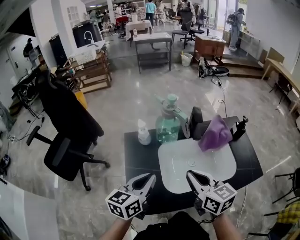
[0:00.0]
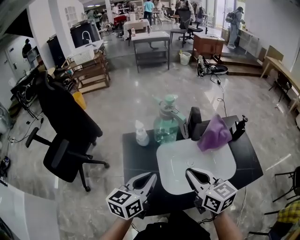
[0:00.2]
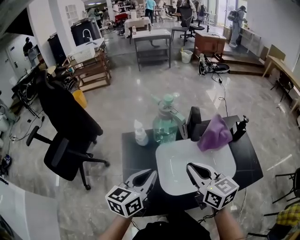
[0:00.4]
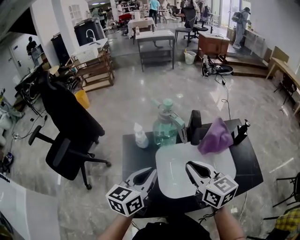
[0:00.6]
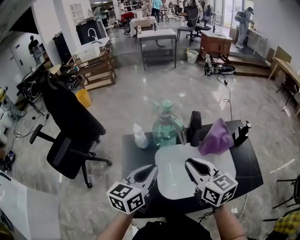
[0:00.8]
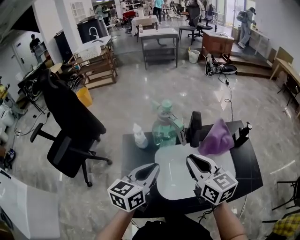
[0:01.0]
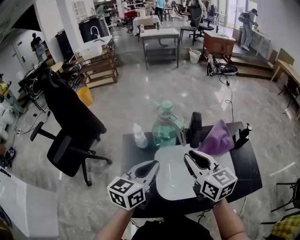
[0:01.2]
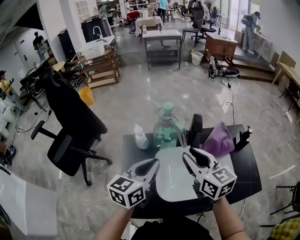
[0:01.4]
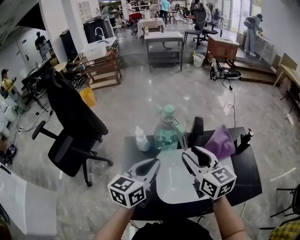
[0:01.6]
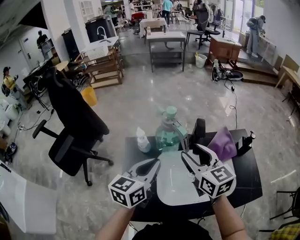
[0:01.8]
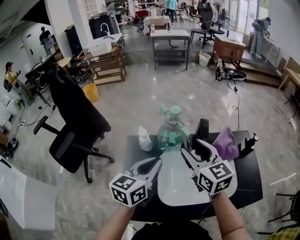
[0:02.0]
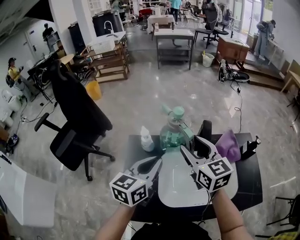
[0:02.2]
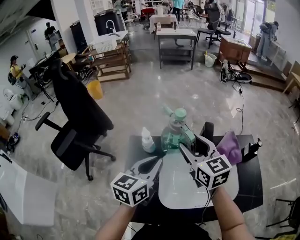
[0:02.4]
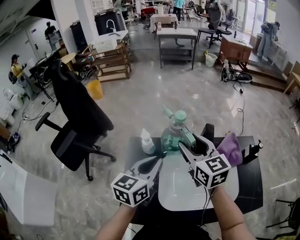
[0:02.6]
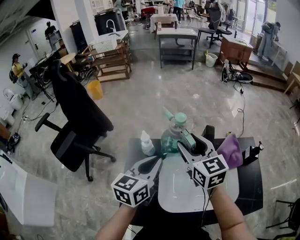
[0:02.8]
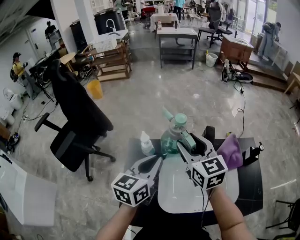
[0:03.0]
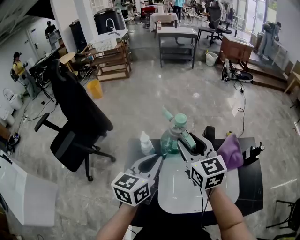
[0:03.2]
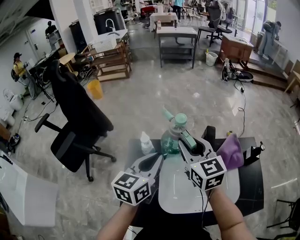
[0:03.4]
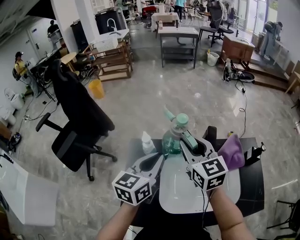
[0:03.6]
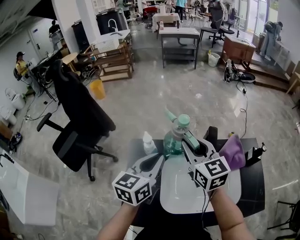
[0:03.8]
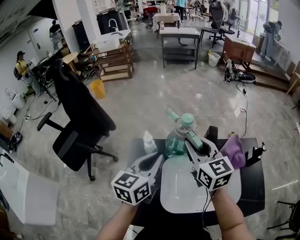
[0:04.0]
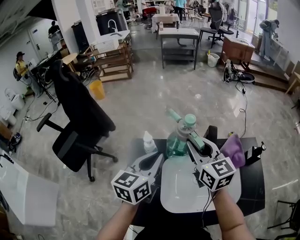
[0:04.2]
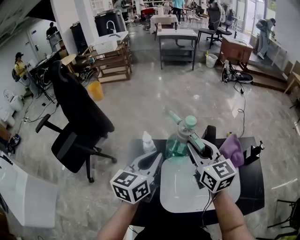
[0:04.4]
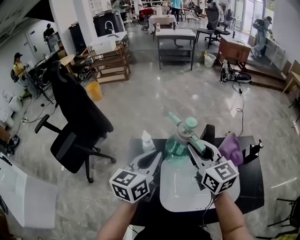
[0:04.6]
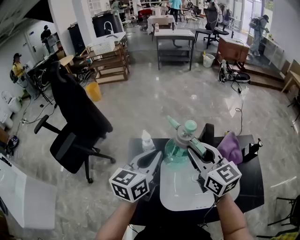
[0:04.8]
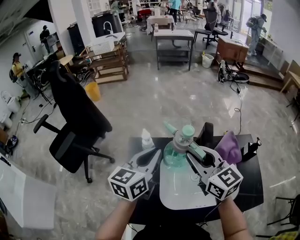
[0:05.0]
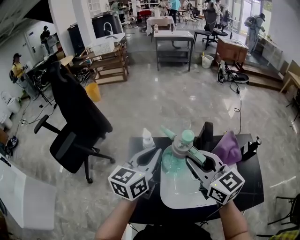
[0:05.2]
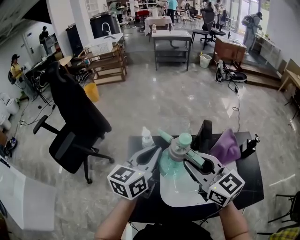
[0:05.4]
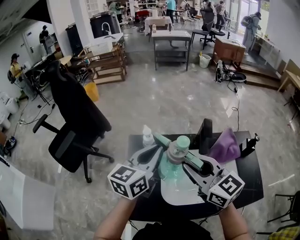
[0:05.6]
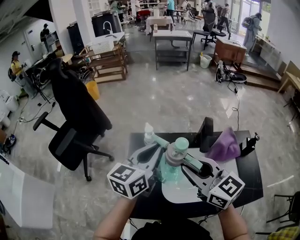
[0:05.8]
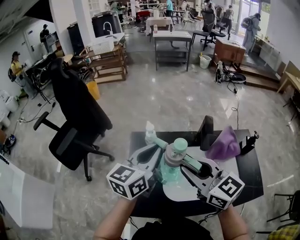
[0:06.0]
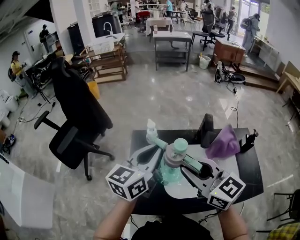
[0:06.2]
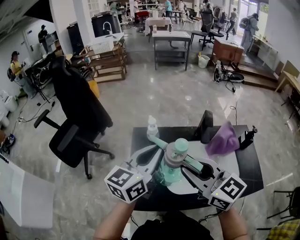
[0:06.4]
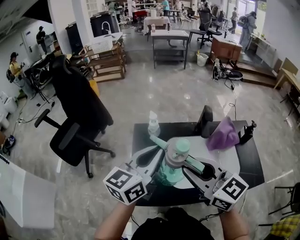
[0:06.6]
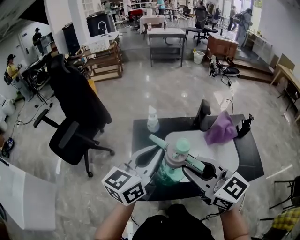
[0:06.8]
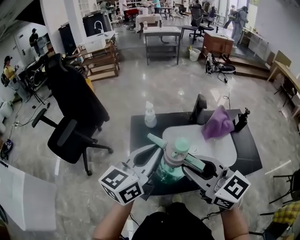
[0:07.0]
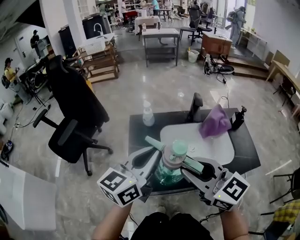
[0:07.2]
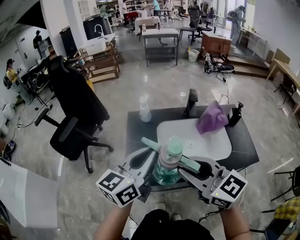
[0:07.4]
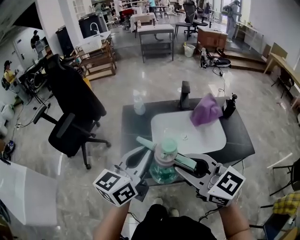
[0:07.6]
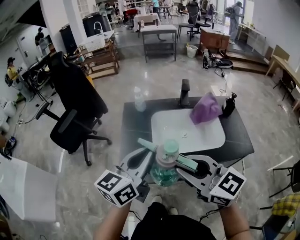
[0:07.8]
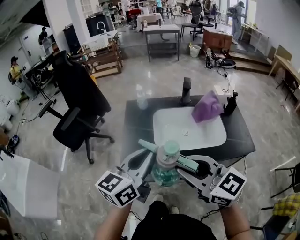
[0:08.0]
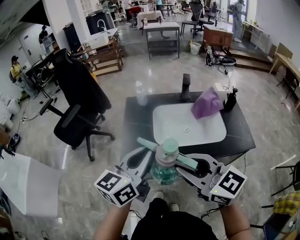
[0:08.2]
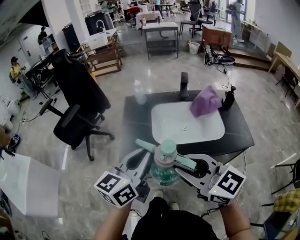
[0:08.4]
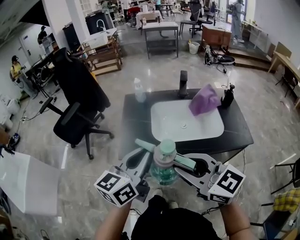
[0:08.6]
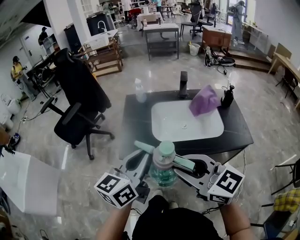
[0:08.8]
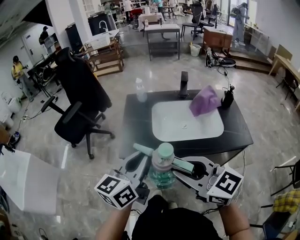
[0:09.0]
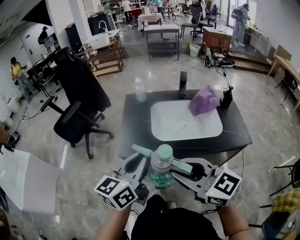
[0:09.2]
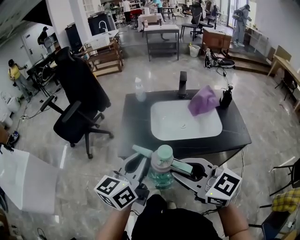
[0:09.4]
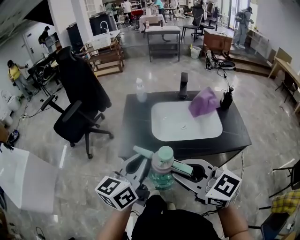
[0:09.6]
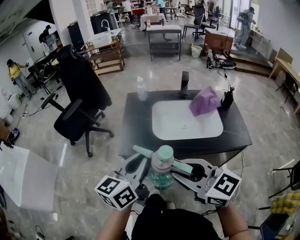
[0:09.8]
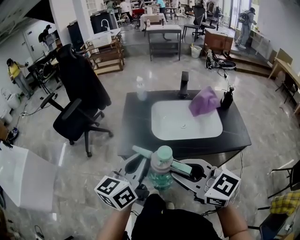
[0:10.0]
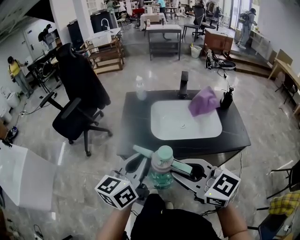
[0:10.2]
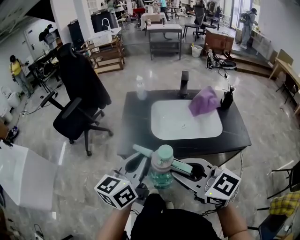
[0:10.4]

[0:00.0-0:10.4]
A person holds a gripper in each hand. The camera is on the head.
0:00.0 to 0:01.4: The left gripper moves forward and to the right, approximately 10 cm. The right gripper travels forward by roughly 10 cm.
0:01.4 to 0:03.0: The right gripper goes approximately 10 cm forward, and opens. The left gripper goes roughly 5 cm forward.
0:03.0 to 0:04.4: The right gripper closes its fingers.
0:04.4 to 0:06.0: The left gripper heads backward, covering about 5 cm. Meanwhile the right gripper moves backward and to the left, some 15 cm.
0:06.0 to 0:07.4: The grippers both shift backward by roughly 20 cm.
0:07.4 to 0:09.0: The two grippers go some 15 cm backward.
0:09.0 to 0:10.4: The grippers stay close to where they were, moving slightly.

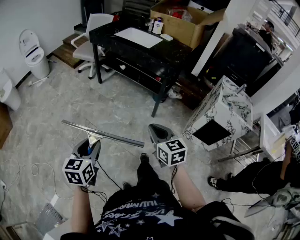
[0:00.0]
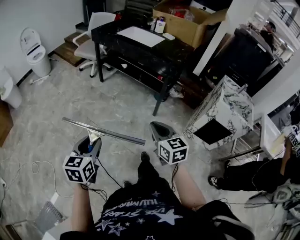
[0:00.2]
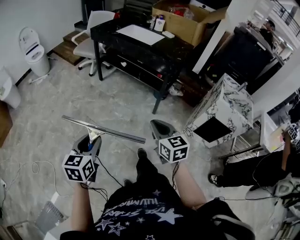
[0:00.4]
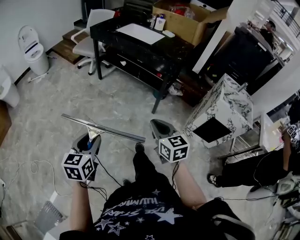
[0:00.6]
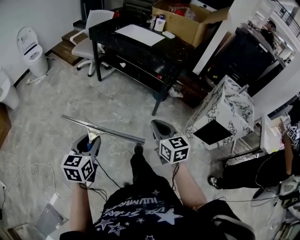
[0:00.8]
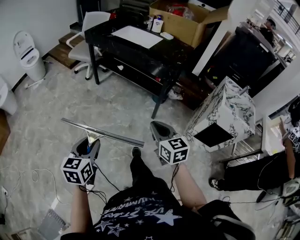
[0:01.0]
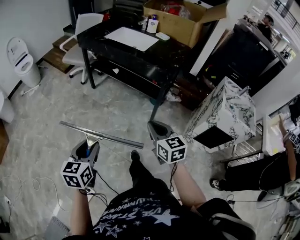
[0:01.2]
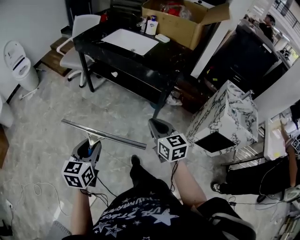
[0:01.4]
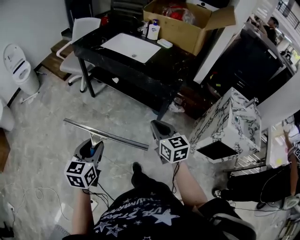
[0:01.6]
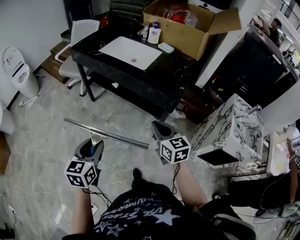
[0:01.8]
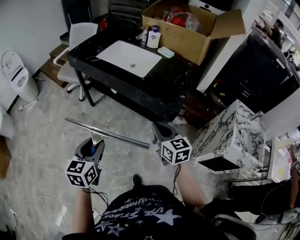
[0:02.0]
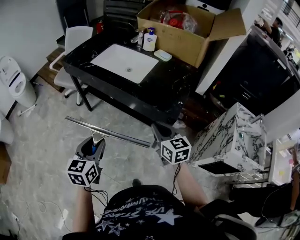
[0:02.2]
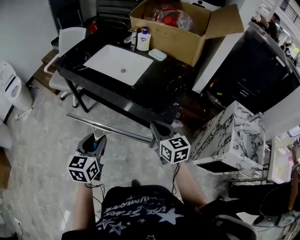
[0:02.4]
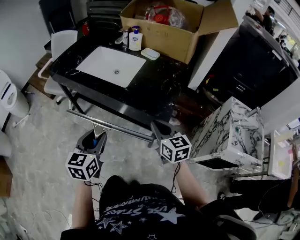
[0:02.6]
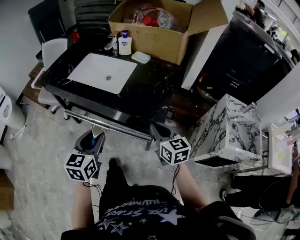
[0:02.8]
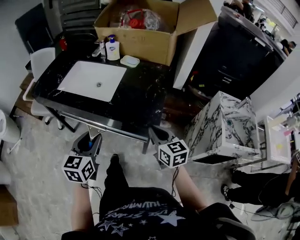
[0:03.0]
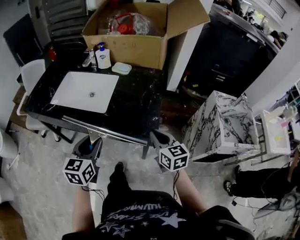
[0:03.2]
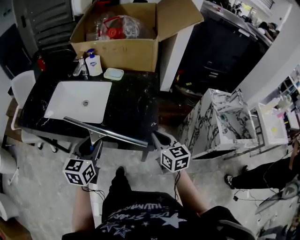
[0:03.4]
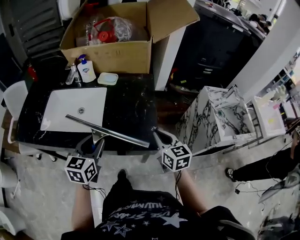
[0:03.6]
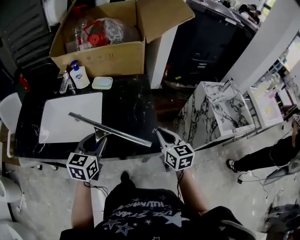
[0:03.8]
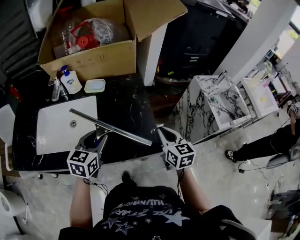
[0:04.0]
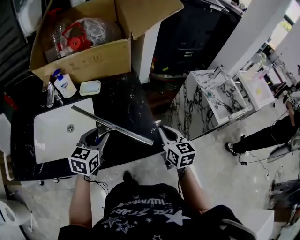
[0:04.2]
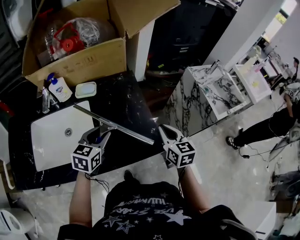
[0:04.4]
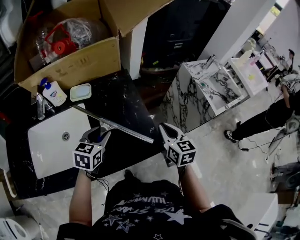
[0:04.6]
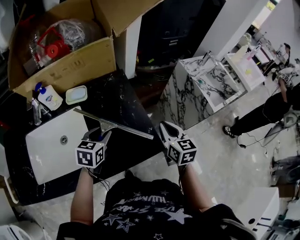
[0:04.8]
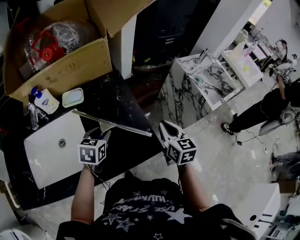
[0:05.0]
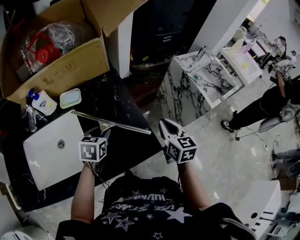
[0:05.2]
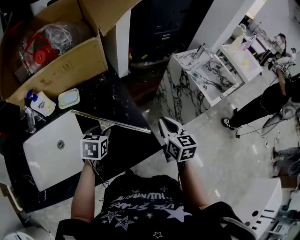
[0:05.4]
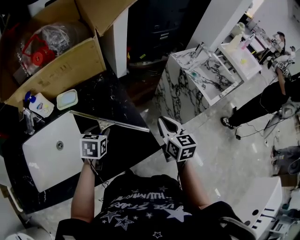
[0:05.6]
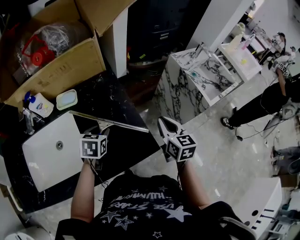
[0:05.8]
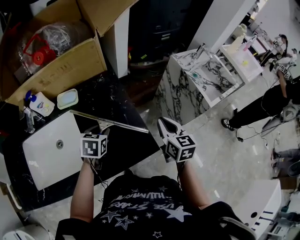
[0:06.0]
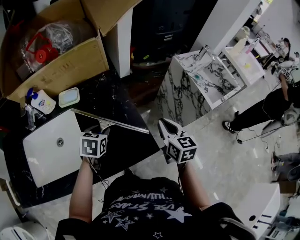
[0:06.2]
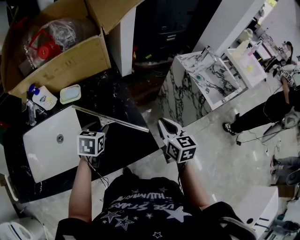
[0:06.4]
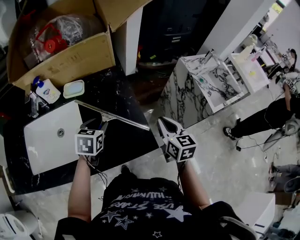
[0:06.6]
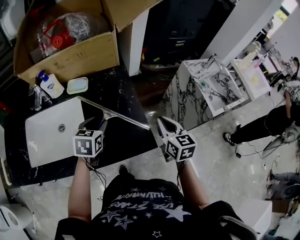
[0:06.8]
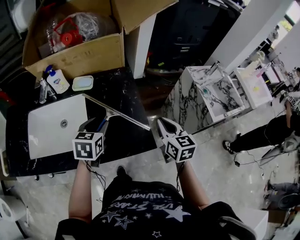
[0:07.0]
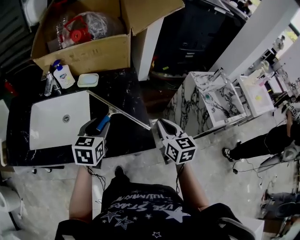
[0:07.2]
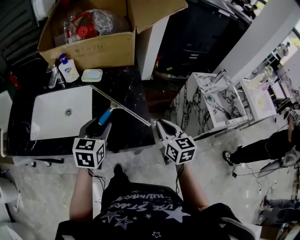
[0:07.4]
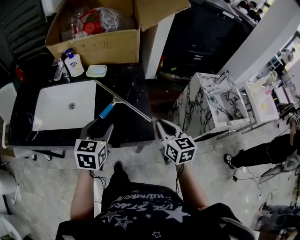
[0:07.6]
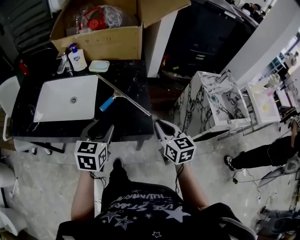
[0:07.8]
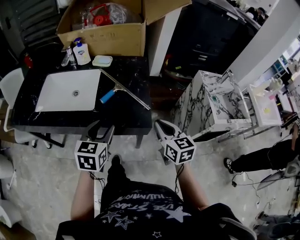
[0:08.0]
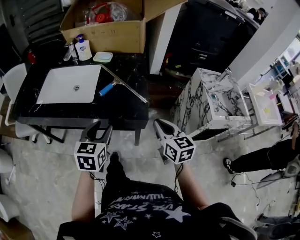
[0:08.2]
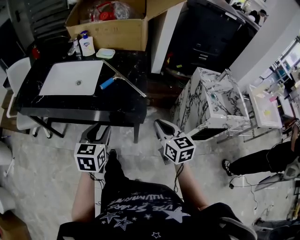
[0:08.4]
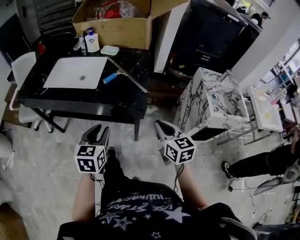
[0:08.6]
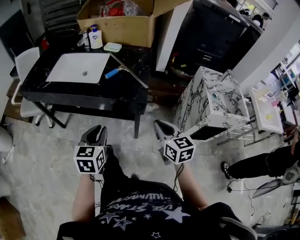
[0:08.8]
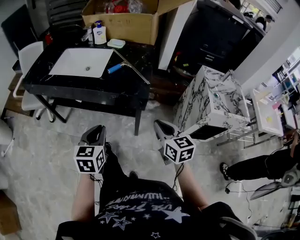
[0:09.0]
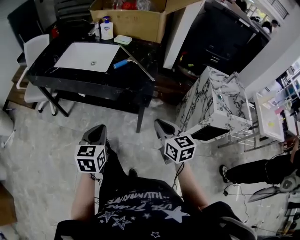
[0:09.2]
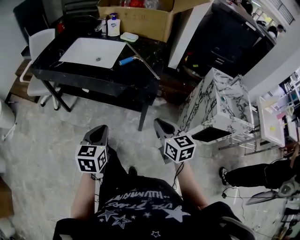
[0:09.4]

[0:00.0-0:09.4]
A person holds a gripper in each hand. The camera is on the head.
0:00.0 to 0:01.6: The grippers both shift forward by approximately 35 cm.
0:01.6 to 0:03.2: The right gripper is displaced forward and to the right by about 35 cm, and swivels some 20 degrees; the left gripper shifts some 40 cm forward, and turns by about 20 degrees.
0:03.2 to 0:04.8: The right gripper moves roughly 15 cm, and turns by some 40 degrees. The left gripper ends up about 30 cm from where it was, and turns by some 40 degrees.
0:04.8 to 0:06.2: The left gripper moves approximately 5 cm.
0:06.2 to 0:07.8: The right gripper changes place by approximately 15 cm, and turns by roughly 30 degrees; the left gripper changes place by about 25 cm, and rotates approximately 30 degrees.
0:07.8 to 0:09.4: The two grippers go approximately 25 cm backward. The left gripper closes up.

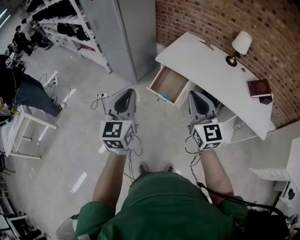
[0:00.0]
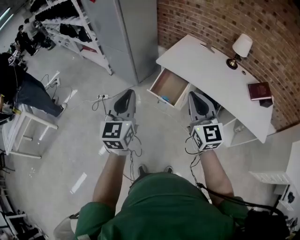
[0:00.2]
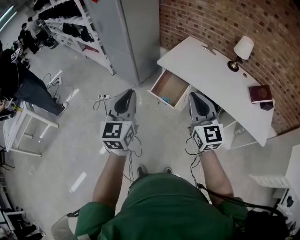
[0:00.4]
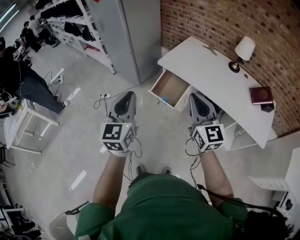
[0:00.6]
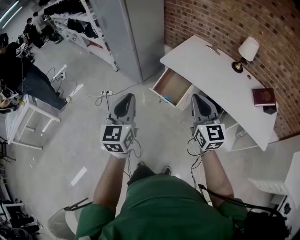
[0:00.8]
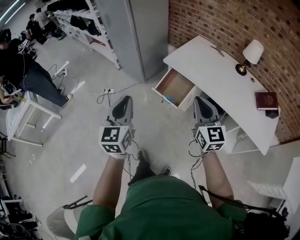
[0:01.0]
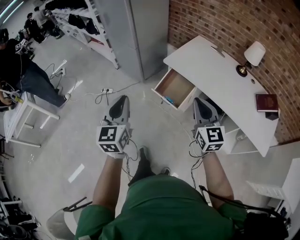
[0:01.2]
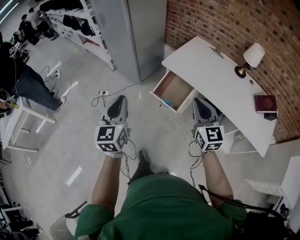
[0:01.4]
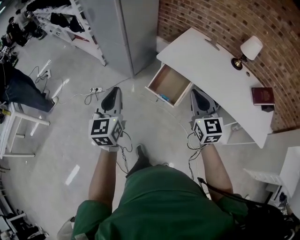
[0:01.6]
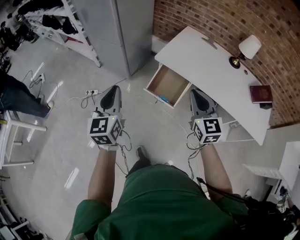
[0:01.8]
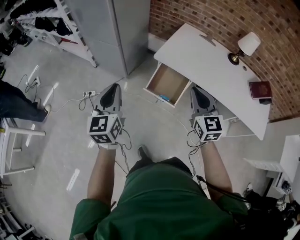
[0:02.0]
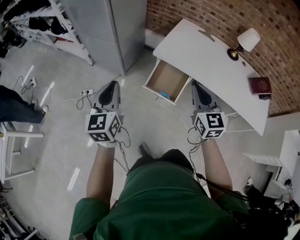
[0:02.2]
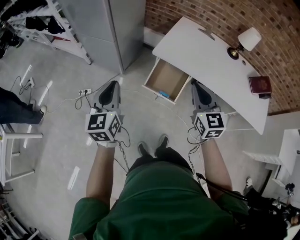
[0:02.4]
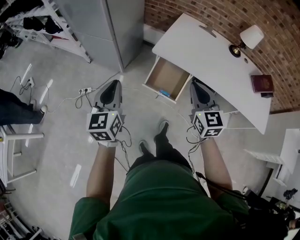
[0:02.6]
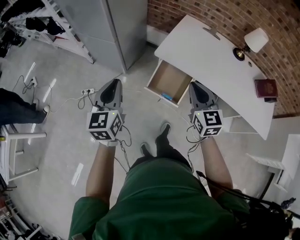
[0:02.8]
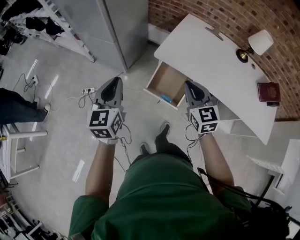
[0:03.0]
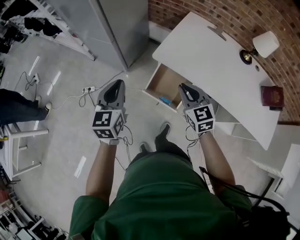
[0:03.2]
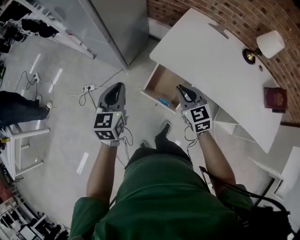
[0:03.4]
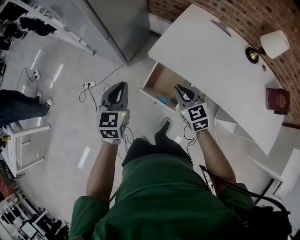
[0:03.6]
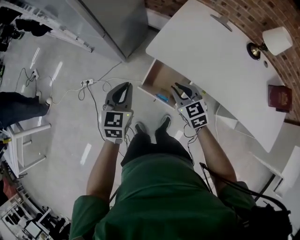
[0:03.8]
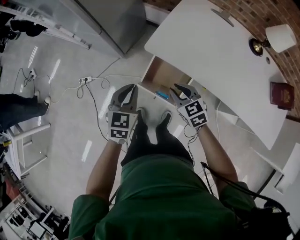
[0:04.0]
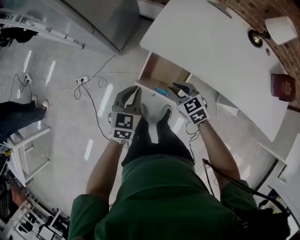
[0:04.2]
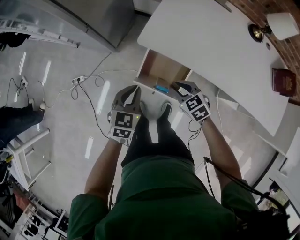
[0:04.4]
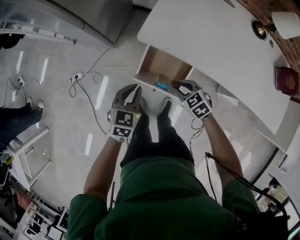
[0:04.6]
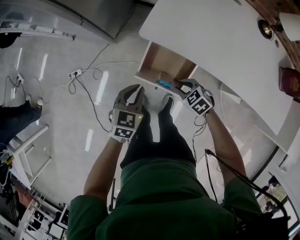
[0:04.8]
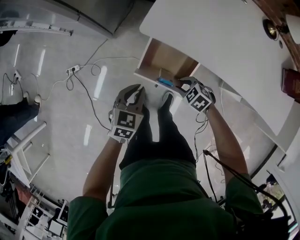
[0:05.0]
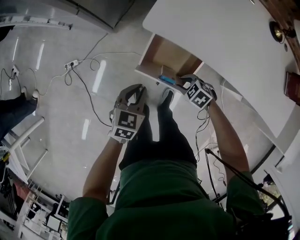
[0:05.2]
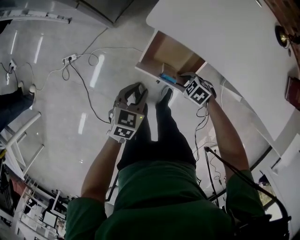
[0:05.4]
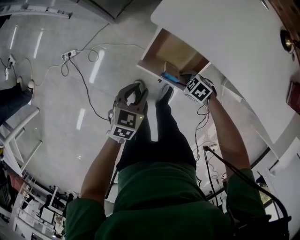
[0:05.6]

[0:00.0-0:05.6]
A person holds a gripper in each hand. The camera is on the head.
0:00.0 to 0:01.4: The right gripper is displaced forward and downward by roughly 10 cm, while the left gripper goes approximately 10 cm forward, downward and to the left.
0:01.4 to 0:02.8: Both grippers travel together forward, about 20 cm.
0:02.8 to 0:04.2: The right gripper goes roughly 25 cm downward and forward, swivels about 40 degrees, and opens up. Meanwhile the left gripper moves downward, to the right and forward, approximately 30 cm, and rotates approximately 30 degrees.
0:04.2 to 0:05.6: The two grippers go some 20 cm downward. The right gripper rotates some 40 degrees. The left gripper changes its angle by approximately 20 degrees, and opens its fingers.
